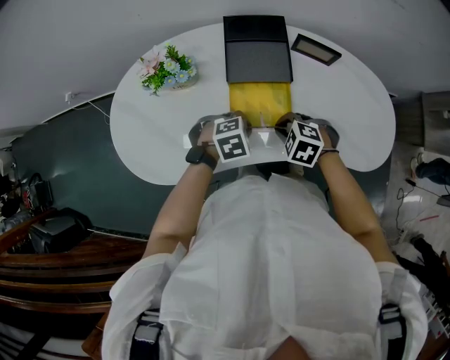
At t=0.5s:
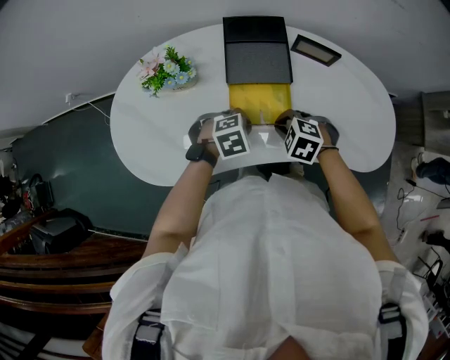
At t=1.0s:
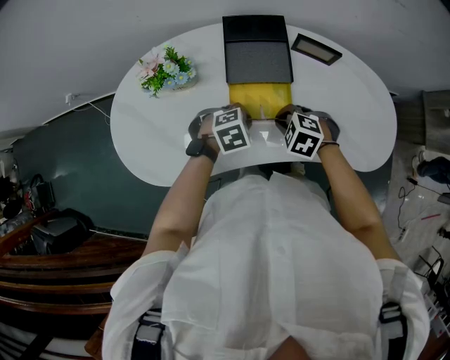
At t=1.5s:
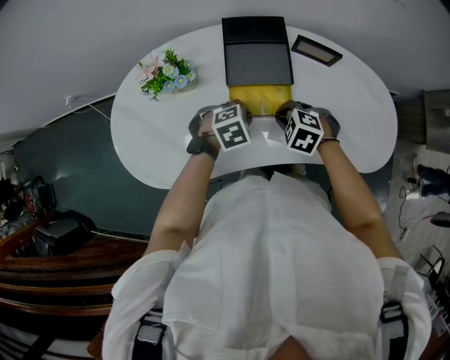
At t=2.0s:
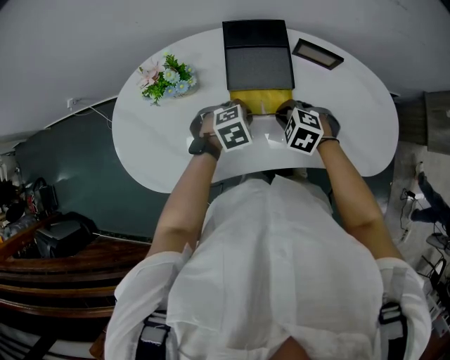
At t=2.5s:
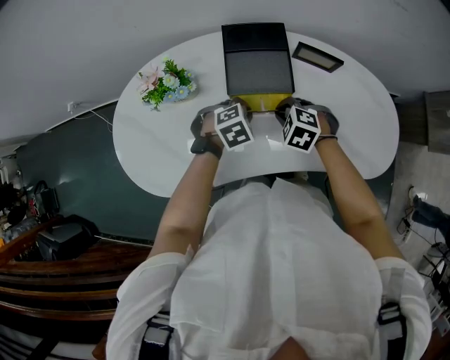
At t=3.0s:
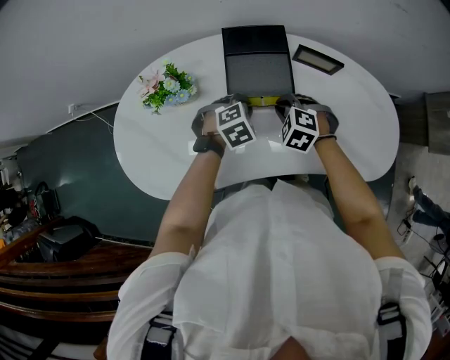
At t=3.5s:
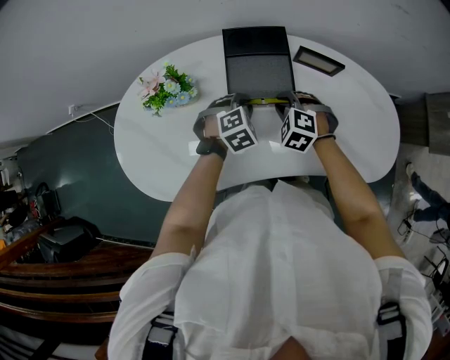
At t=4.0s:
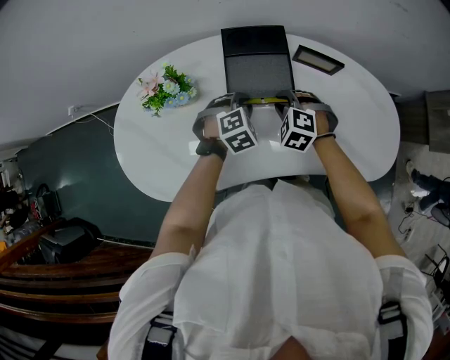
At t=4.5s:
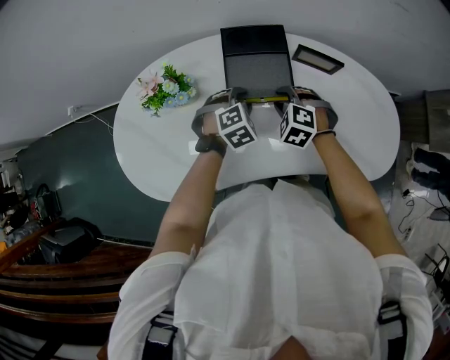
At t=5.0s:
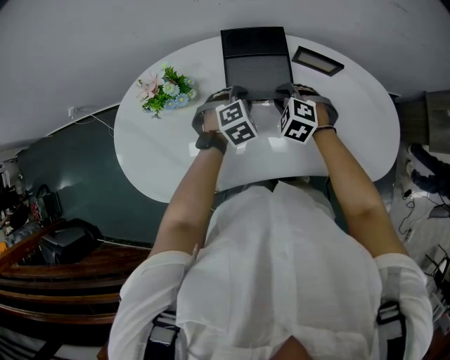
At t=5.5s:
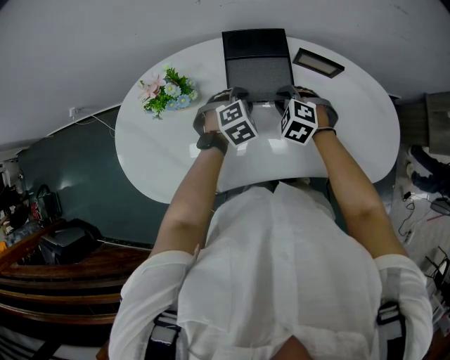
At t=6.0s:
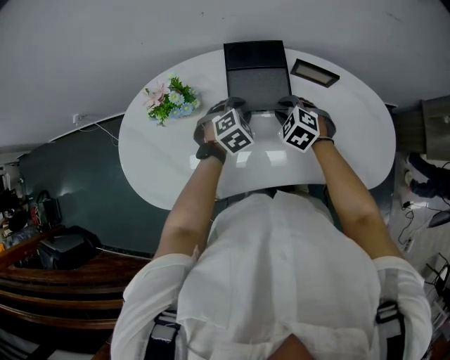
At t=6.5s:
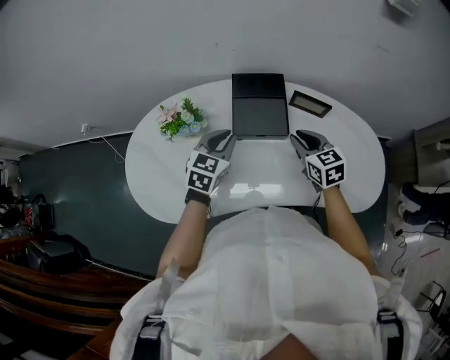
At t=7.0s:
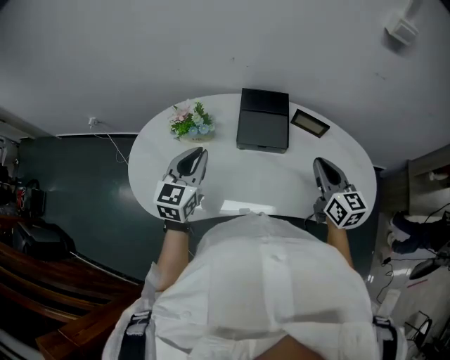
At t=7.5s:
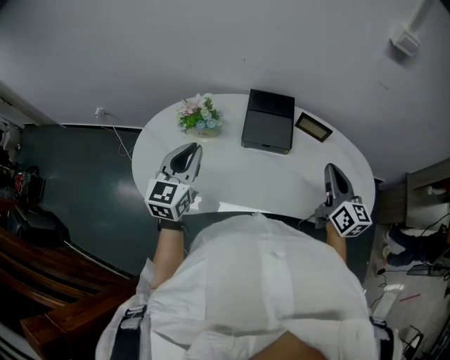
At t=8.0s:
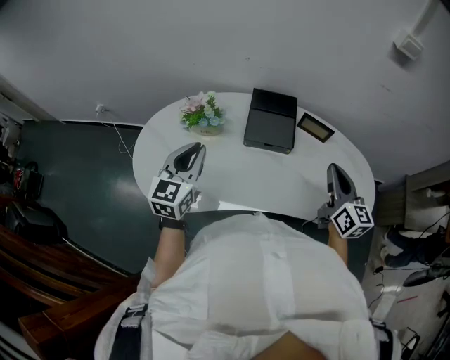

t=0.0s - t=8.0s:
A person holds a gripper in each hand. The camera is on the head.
t=0.0s - t=2.0s: The right gripper changes place by roughly 5 cm. The left gripper shifts by about 5 cm.
t=2.0s - t=4.0s: Both grippers move forward, about 5 cm.
t=4.0s - t=6.0s: The grippers stay close to where they were, moving slightly.
t=6.0s - t=8.0s: The left gripper is displaced upward, to the left and backward by approximately 30 cm, and points its fingers about 50 degrees further upward. The right gripper heads upward, backward and to the right, covering approximately 30 cm, points its fingers some 50 degrees further upward, and closes up.

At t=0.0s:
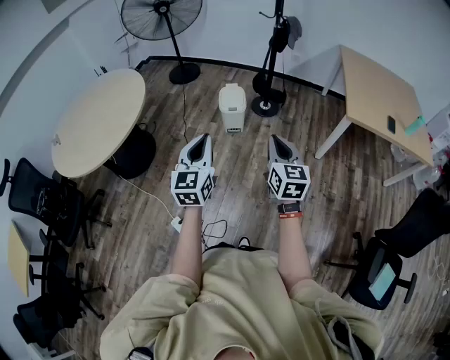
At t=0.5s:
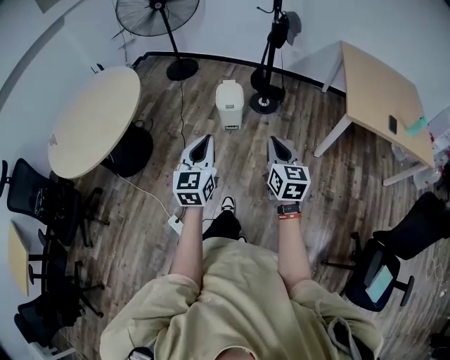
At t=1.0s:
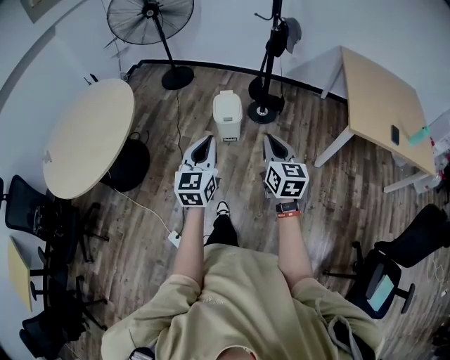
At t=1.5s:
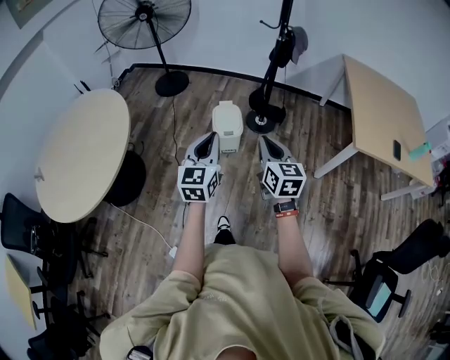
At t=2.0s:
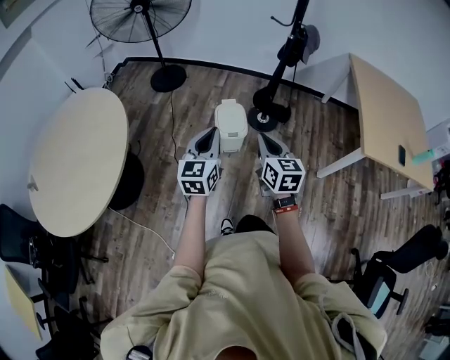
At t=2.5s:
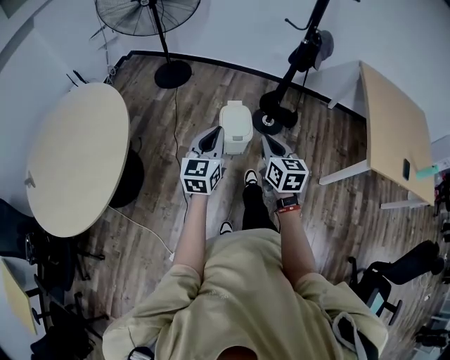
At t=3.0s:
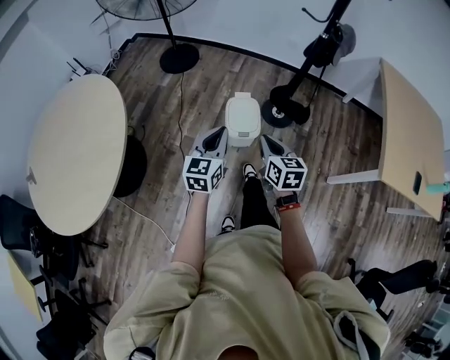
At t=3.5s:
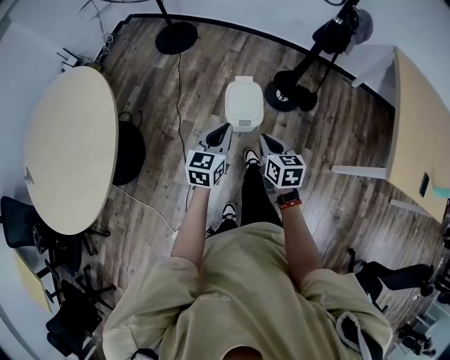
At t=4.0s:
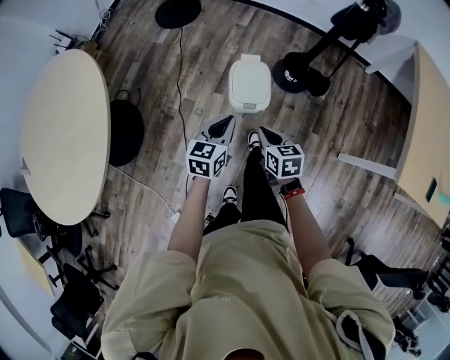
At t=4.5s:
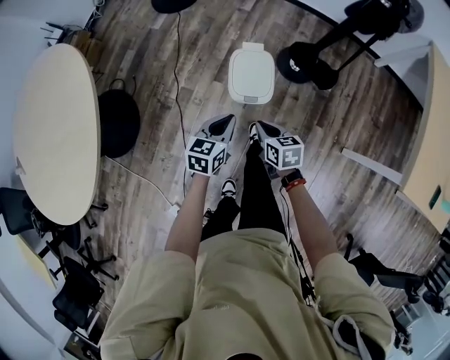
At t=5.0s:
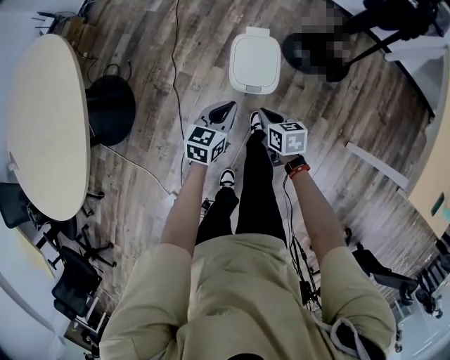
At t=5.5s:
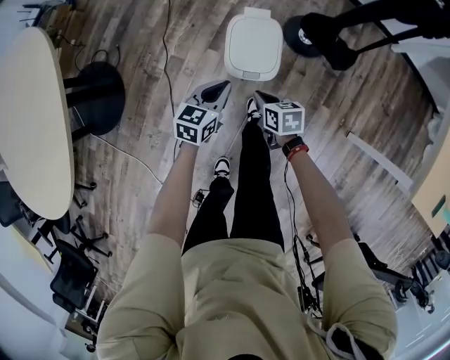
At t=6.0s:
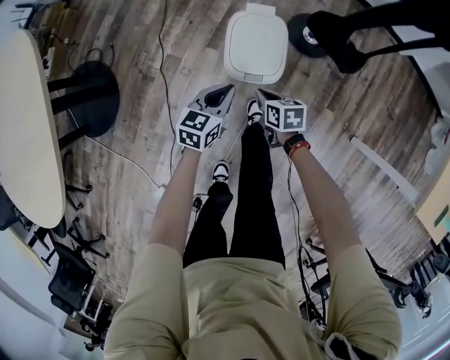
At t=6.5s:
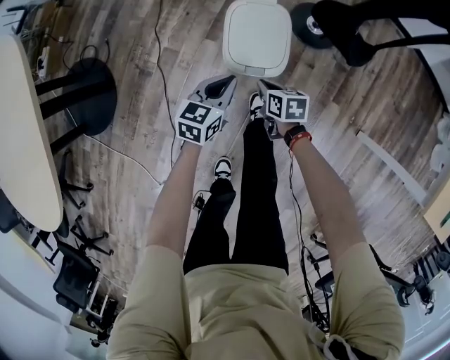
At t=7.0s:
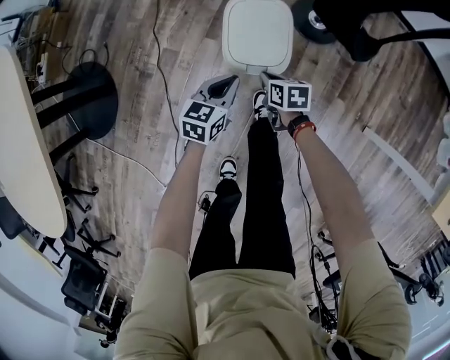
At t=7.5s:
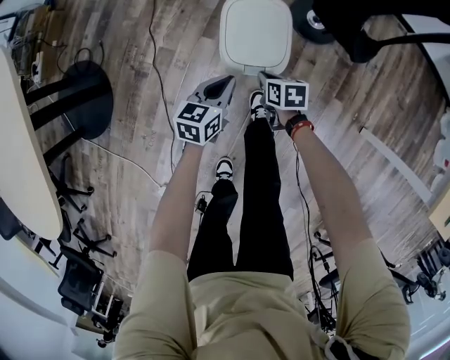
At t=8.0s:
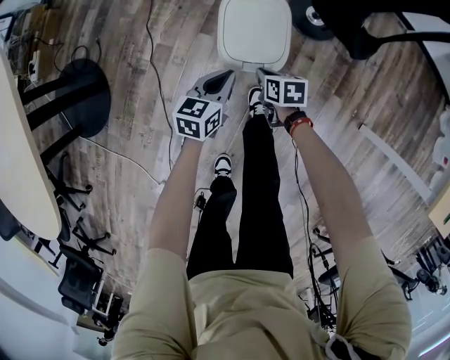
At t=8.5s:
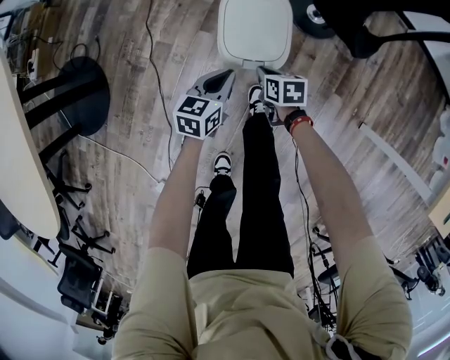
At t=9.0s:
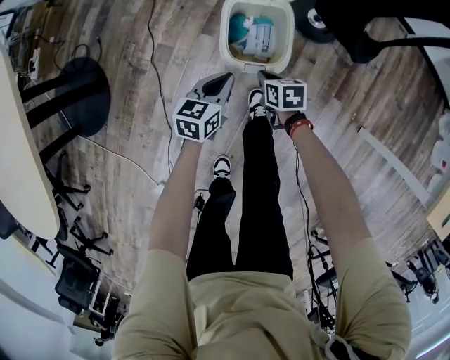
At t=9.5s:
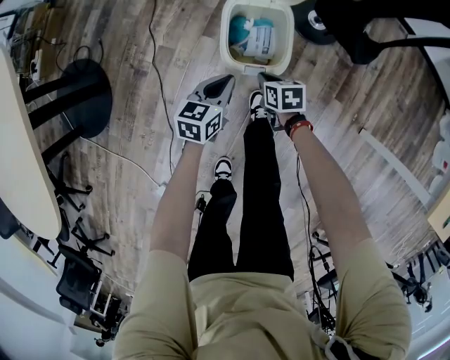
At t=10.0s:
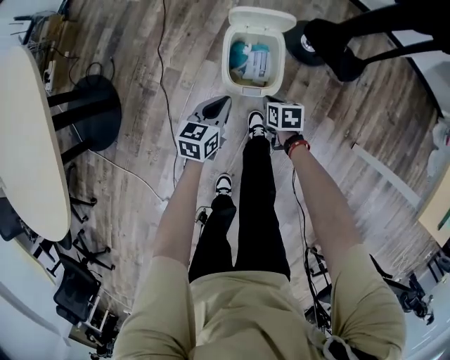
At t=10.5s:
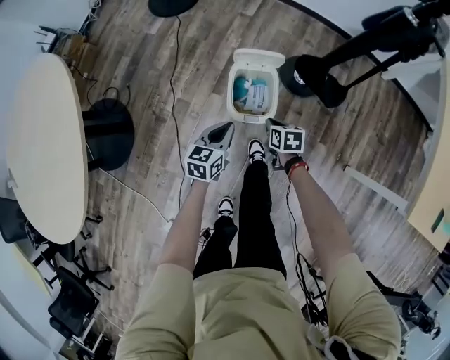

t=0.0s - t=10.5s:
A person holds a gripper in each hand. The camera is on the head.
t=0.0s - t=2.0s: The two grippers travel together, forward, approximately 40 cm.
t=2.0s - t=4.0s: The grippers both shift downward and forward by approximately 40 cm. The left gripper changes its angle by about 30 degrees; the right gripper changes its angle by approximately 30 degrees.
t=4.0s - t=6.5s: The grippers both shift downward by some 35 cm.
t=6.5s - t=8.5s: The two grippers go some 5 cm downward.
t=8.5s - t=10.5s: The grippers both shift upward by roughly 20 cm.

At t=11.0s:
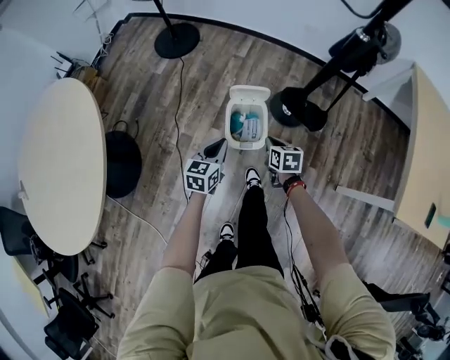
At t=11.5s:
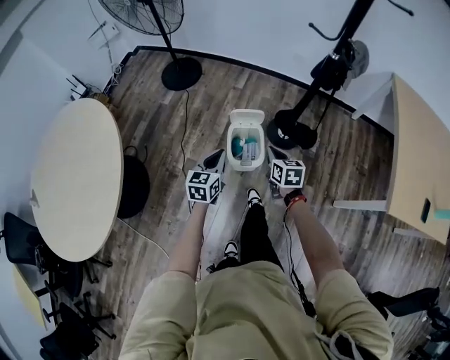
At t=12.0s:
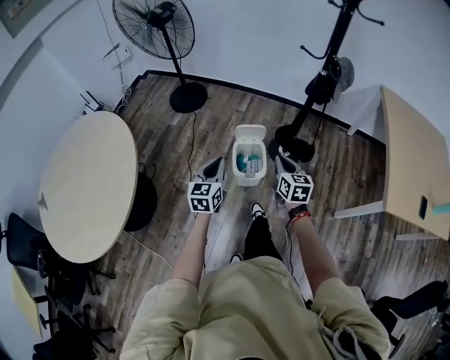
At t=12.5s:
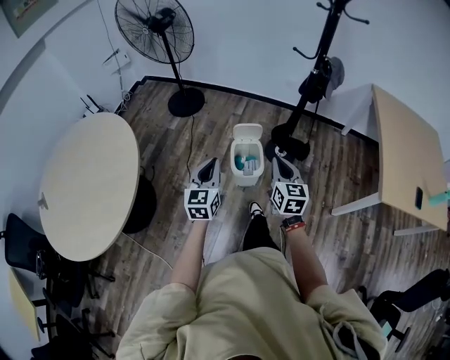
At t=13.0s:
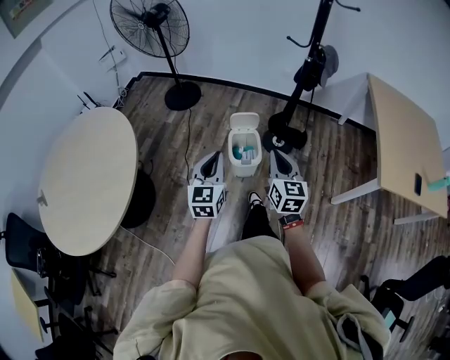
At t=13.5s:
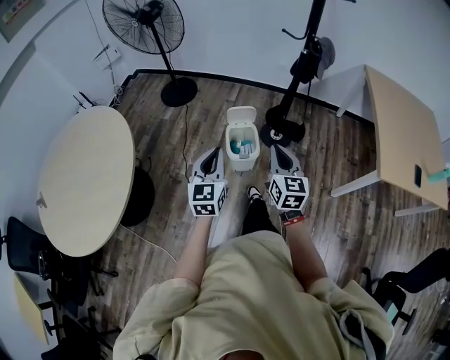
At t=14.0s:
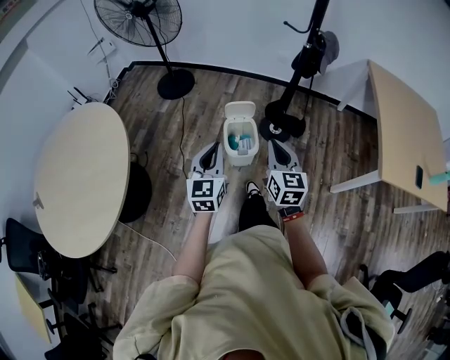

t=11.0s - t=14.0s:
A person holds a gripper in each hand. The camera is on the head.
t=11.0s - t=12.5s: Both grippers move upward and backward, some 40 cm. The right gripper tilts its fingers roughly 30 degrees upward. Meanwhile the left gripper rotates roughly 30 degrees.

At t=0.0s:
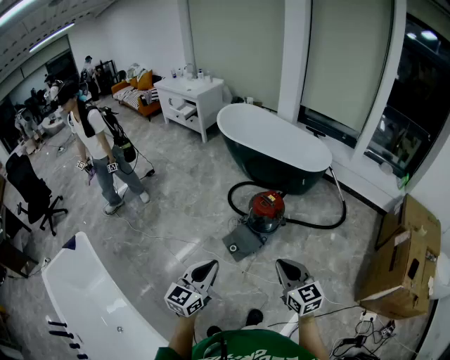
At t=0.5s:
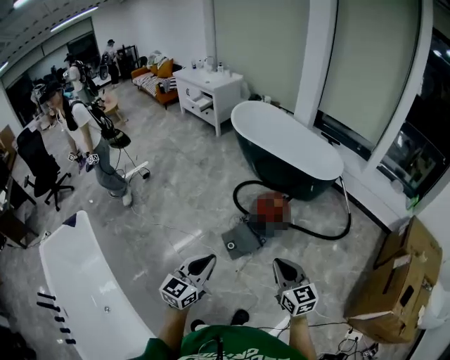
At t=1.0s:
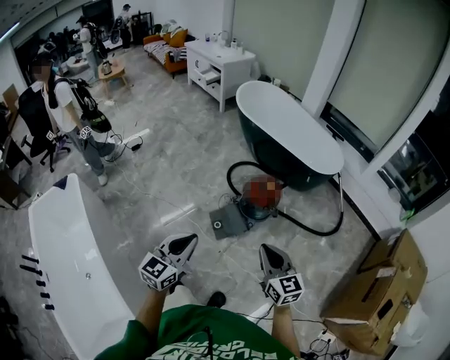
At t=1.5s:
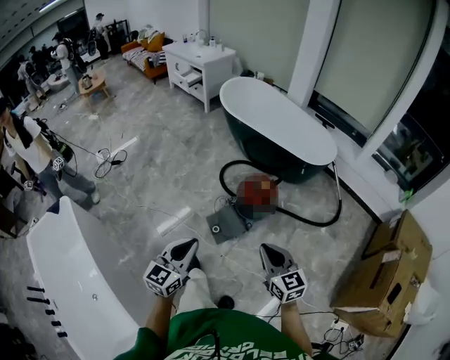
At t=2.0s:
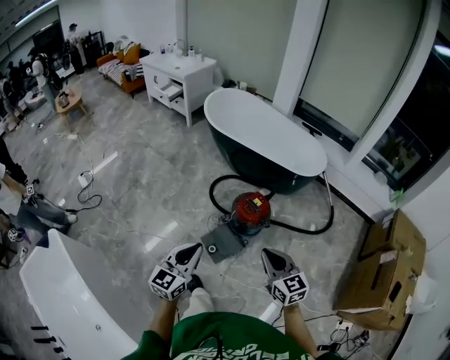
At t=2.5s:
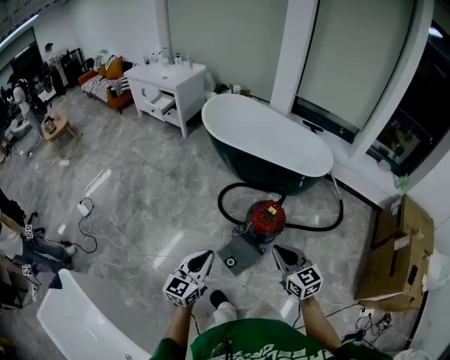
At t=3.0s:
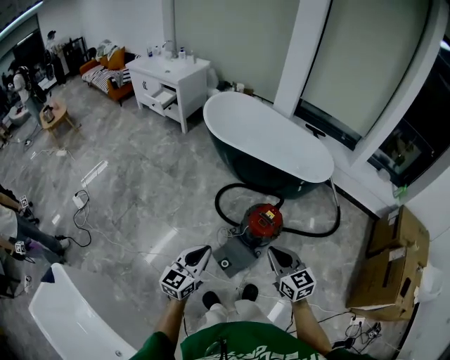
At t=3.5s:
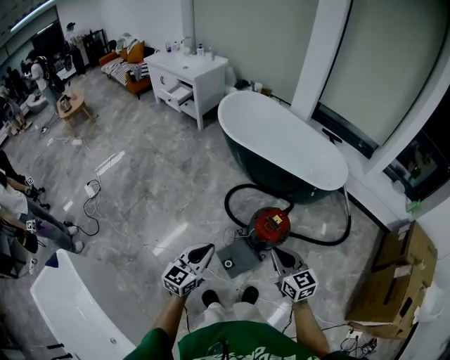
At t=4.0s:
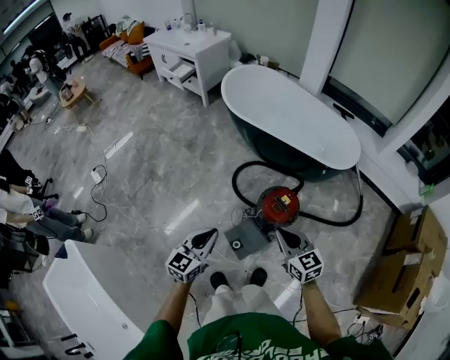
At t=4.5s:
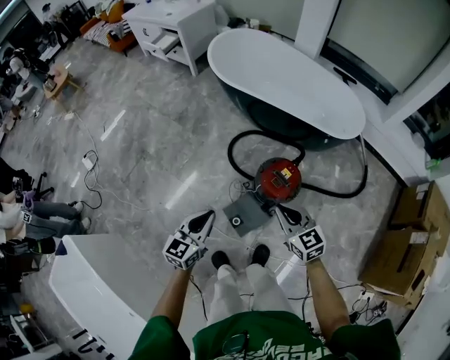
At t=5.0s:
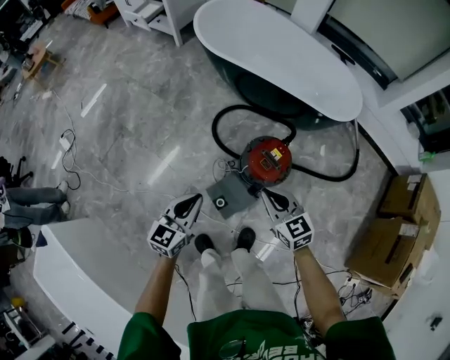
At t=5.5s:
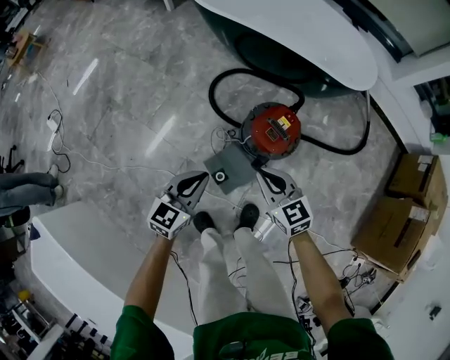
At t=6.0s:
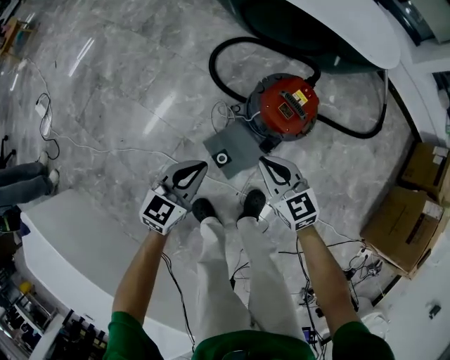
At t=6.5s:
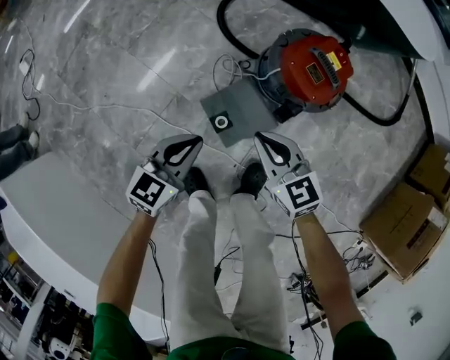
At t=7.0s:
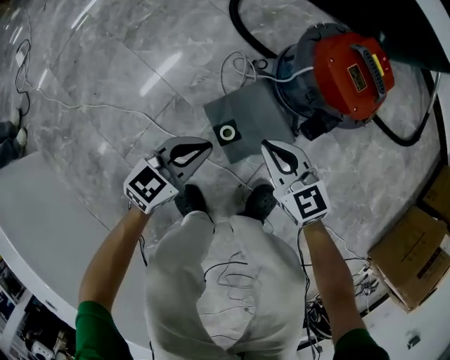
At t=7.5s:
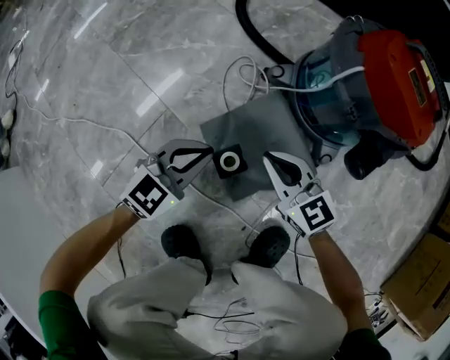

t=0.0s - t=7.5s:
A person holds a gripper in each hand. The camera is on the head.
t=0.0s - t=2.0s: The grippers both shift forward by some 20 cm.
t=2.0s - t=4.0s: The right gripper goes about 20 cm forward; the left gripper heads forward and downward, covering approximately 20 cm.
t=4.0s - t=5.5s: The two grippers go about 25 cm downward.
t=5.5s - t=7.5s: Both grippers travel together downward, approximately 60 cm.
